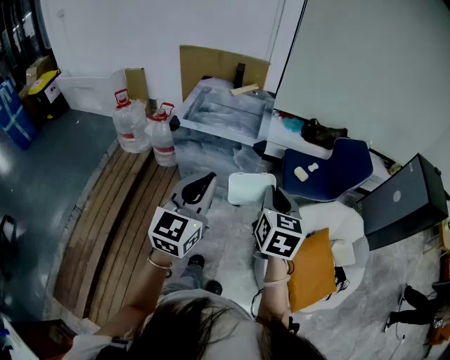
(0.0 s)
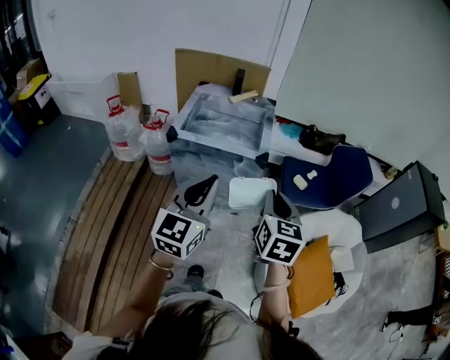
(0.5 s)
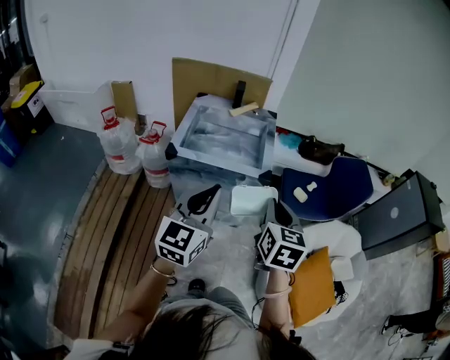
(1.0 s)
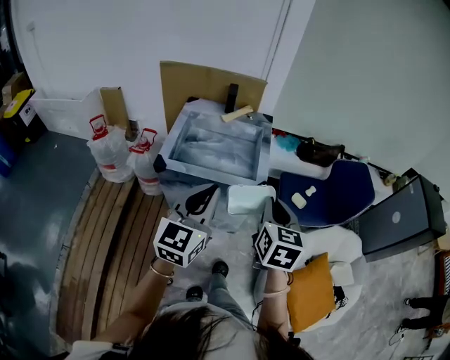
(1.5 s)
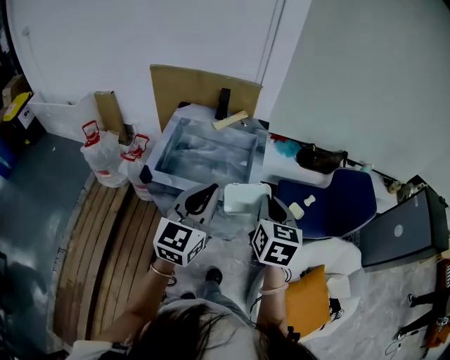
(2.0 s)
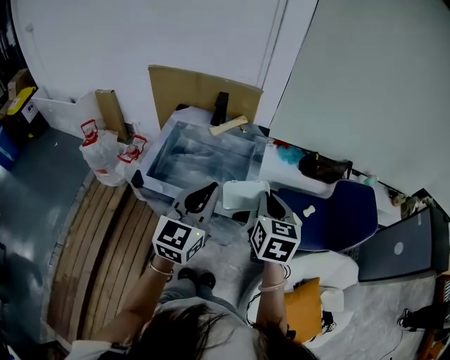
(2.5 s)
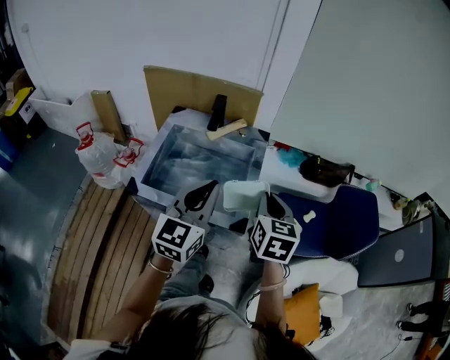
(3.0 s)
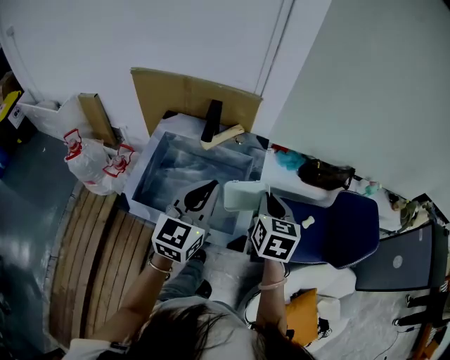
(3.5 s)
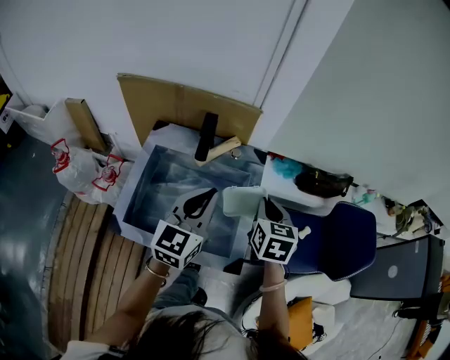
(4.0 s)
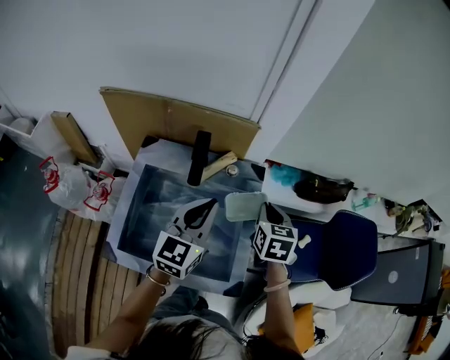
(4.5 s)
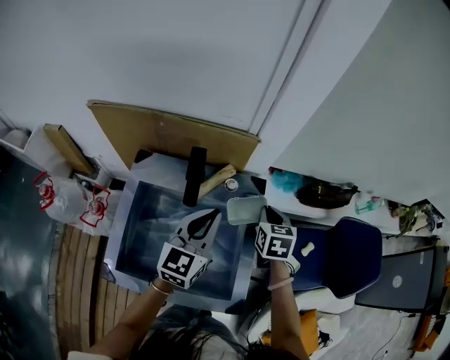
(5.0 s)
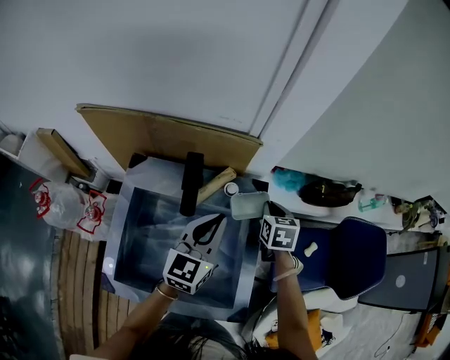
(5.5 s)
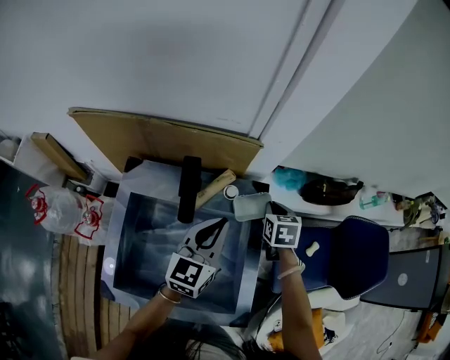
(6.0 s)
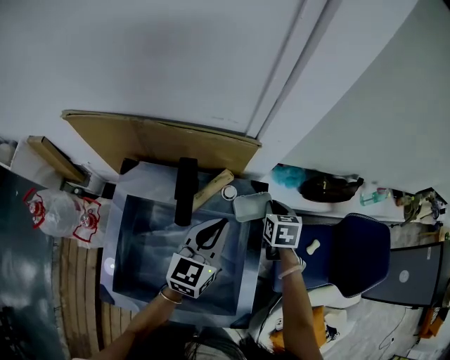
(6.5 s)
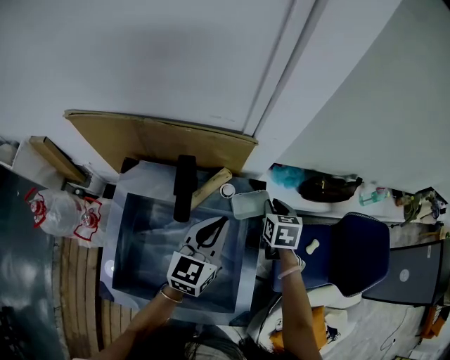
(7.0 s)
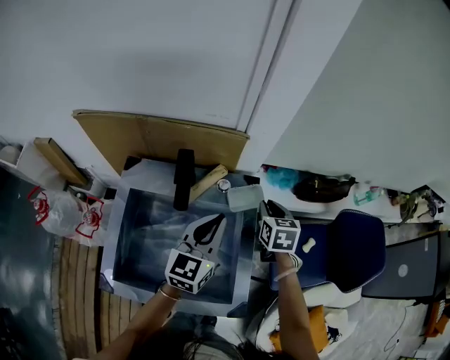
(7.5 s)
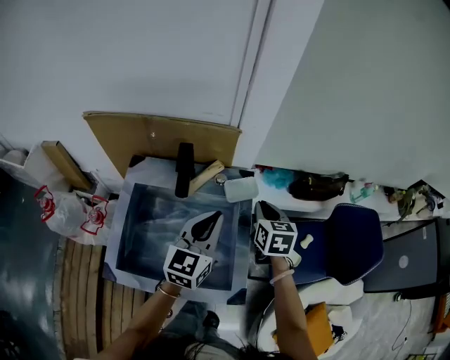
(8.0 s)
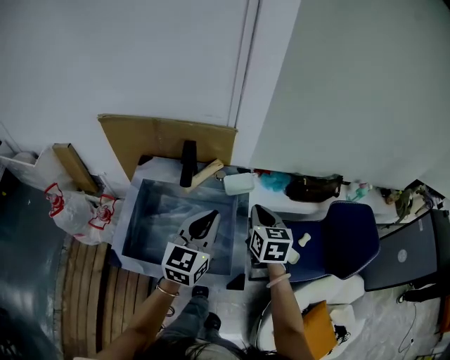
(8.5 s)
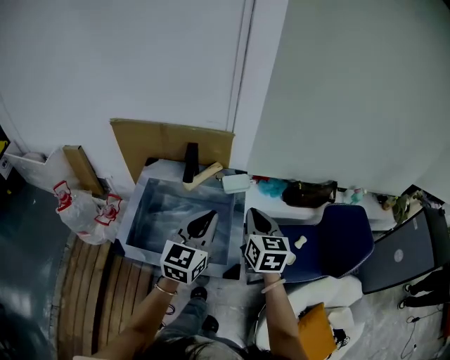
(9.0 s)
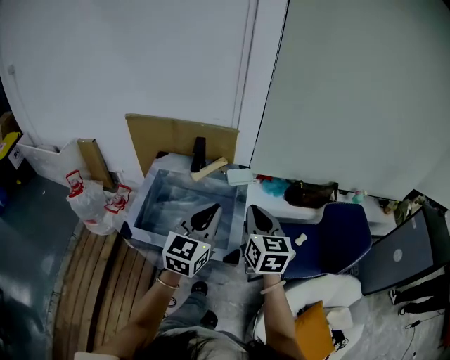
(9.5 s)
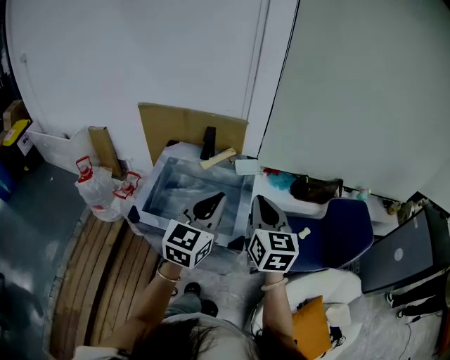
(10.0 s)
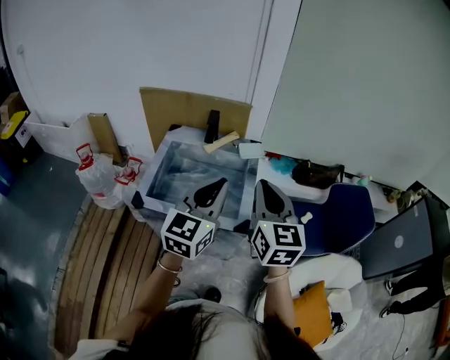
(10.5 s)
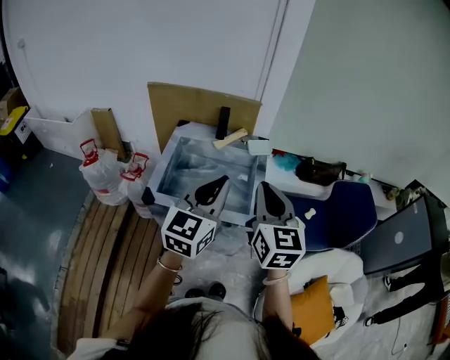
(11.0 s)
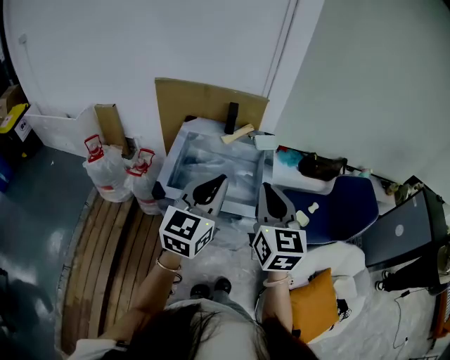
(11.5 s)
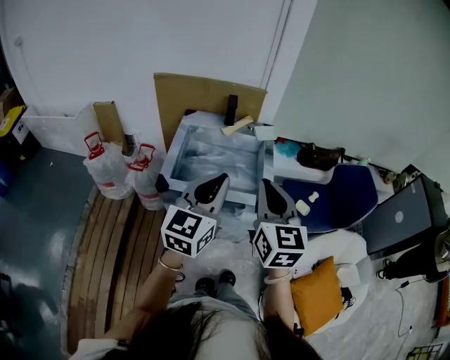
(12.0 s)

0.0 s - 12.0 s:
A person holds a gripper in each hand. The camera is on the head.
0.0 s - 2.0 s: Both grippers move forward, roughly 30 cm.
2.0 s - 4.0 s: Both grippers move forward, roughly 30 cm.
4.0 s - 6.0 s: The two grippers go about 20 cm forward and downward.
6.0 s - 8.0 s: The right gripper shifts roughly 15 cm backward and upward. Meanwhile the left gripper goes approximately 10 cm backward.
8.0 s - 10.0 s: The grippers both shift backward and upward by about 30 cm. The right gripper changes its angle by approximately 30 degrees.
10.0 s - 12.0 s: Both grippers travel together backward and to the left, some 20 cm.

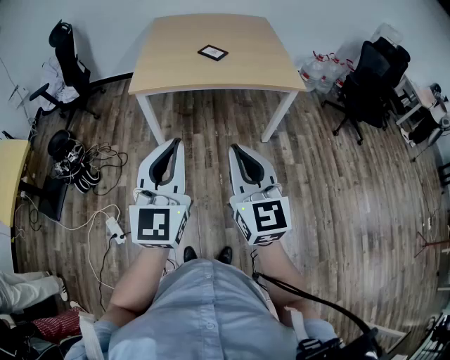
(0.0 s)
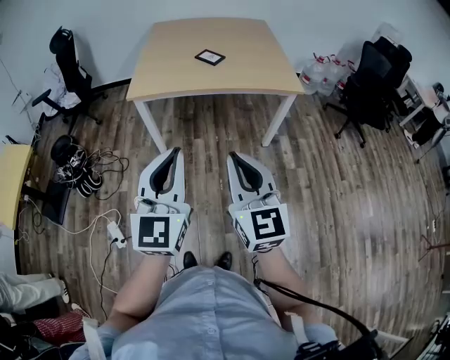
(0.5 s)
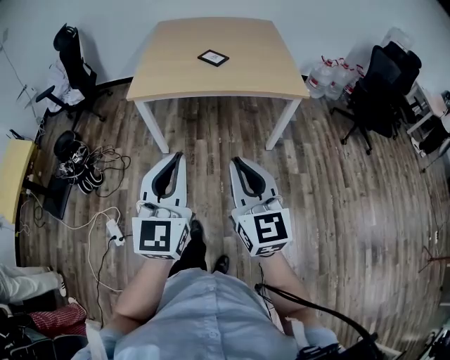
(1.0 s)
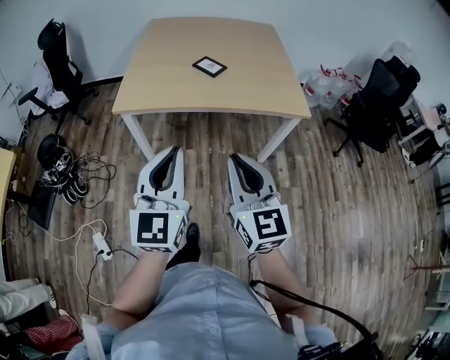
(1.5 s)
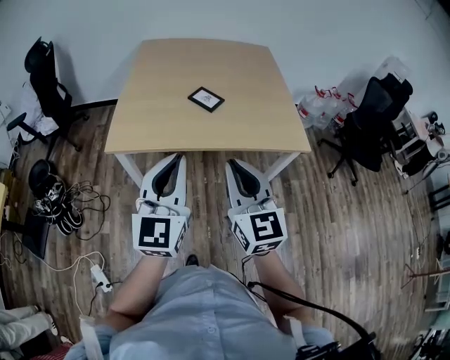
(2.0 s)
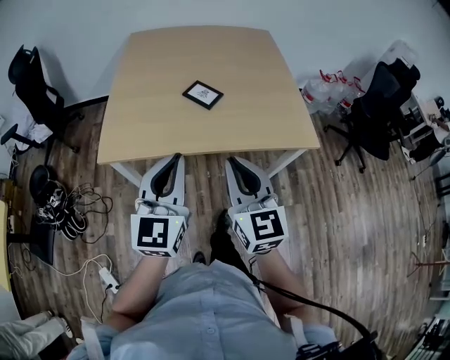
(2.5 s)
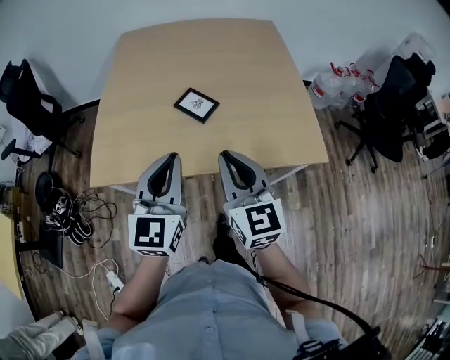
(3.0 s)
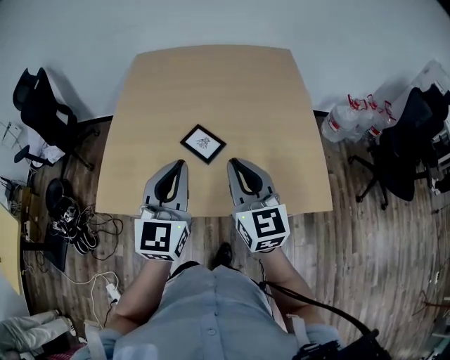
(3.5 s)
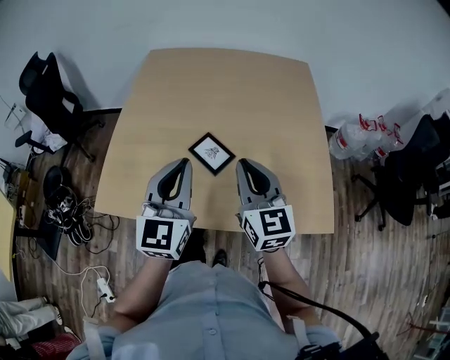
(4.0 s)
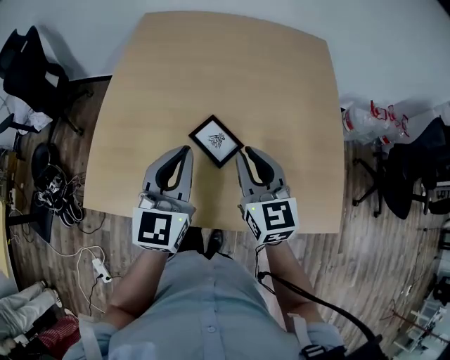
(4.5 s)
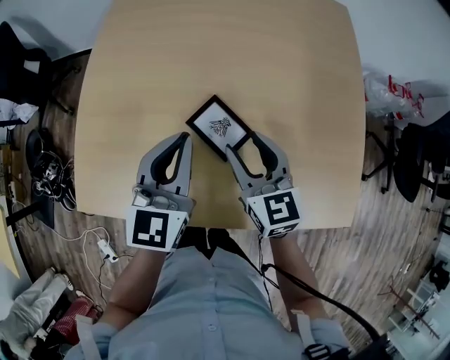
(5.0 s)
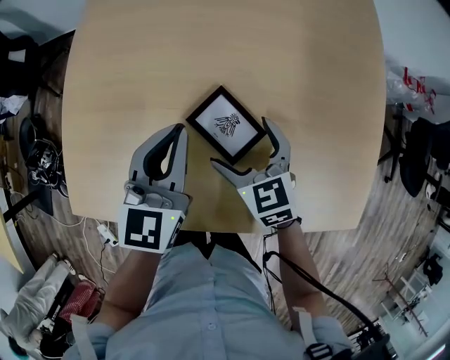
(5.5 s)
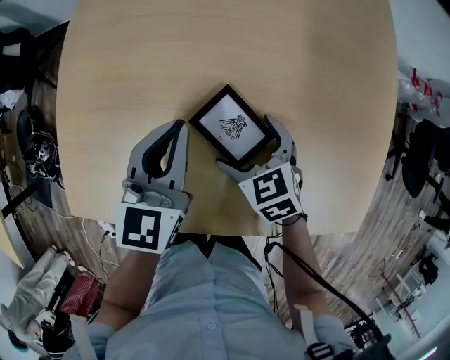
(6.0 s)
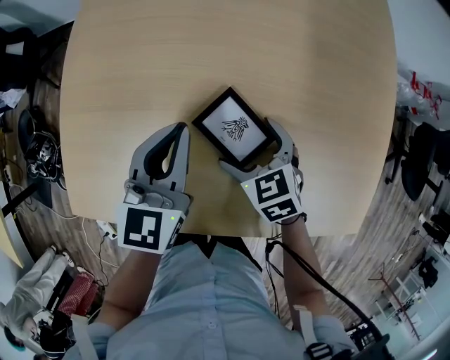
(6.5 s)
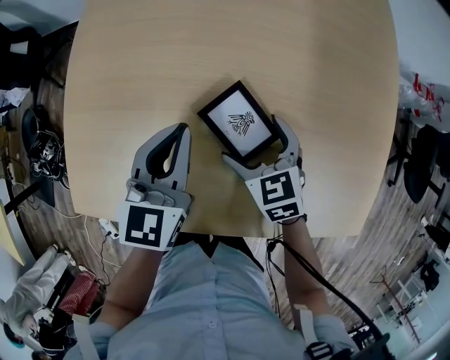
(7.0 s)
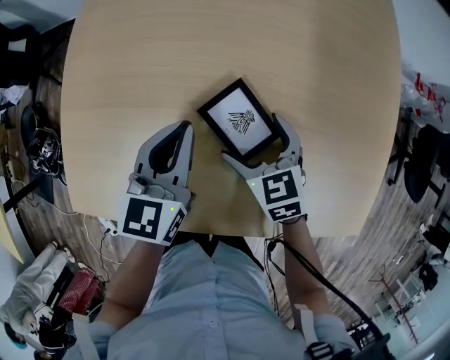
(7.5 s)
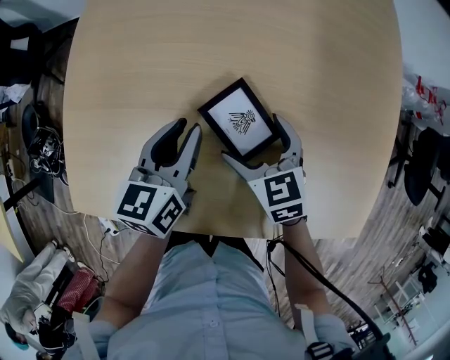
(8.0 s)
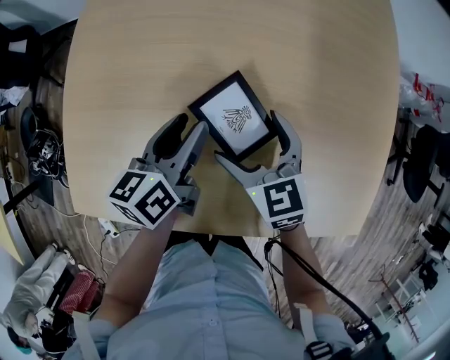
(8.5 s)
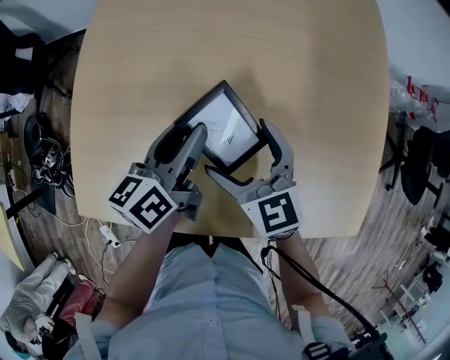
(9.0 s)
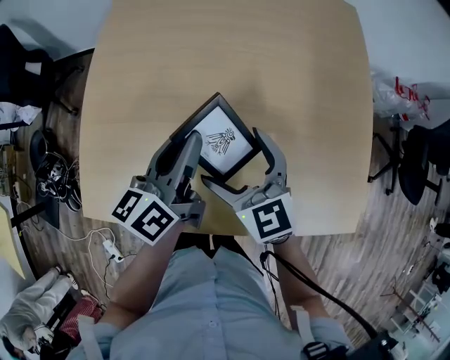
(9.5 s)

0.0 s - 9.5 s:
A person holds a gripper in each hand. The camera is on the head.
0.0 s - 2.0 s: The two grippers go some 25 cm forward.
2.0 s - 4.0 s: The grippers both shift forward by roughly 25 cm.
4.0 s - 5.5 s: The right gripper is displaced downward by about 20 cm, angles its fingers downward, by roughly 30 degrees, and opens up; the left gripper is displaced downward and forward by approximately 15 cm.
5.5 s - 7.5 s: The grippers make only small movements.
7.5 s - 9.5 s: The left gripper travels upward by about 5 cm, turns by roughly 30 degrees, and opens, then closes once more. Meanwhile the right gripper is displaced upward by approximately 10 cm, and changes its angle by about 20 degrees.

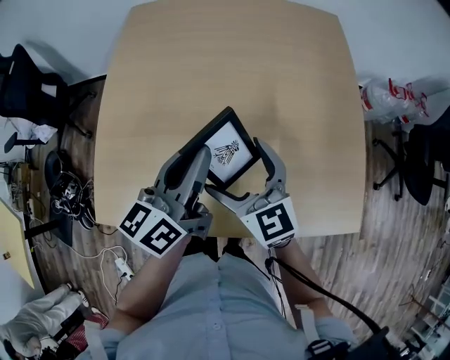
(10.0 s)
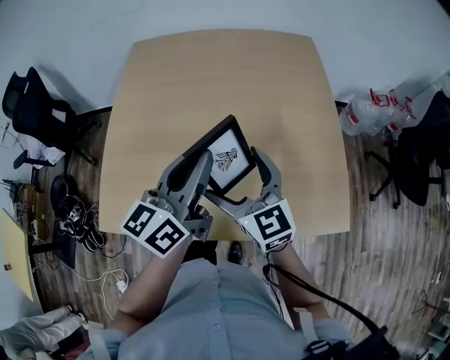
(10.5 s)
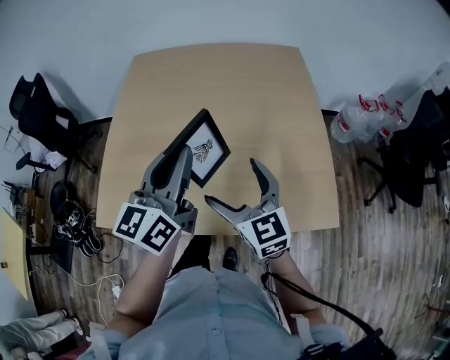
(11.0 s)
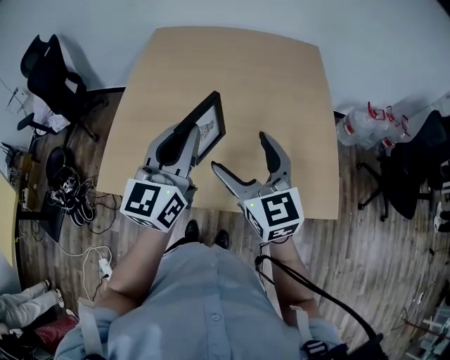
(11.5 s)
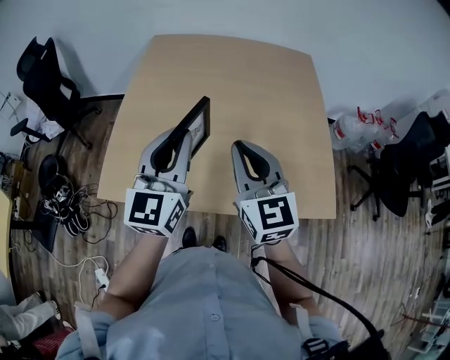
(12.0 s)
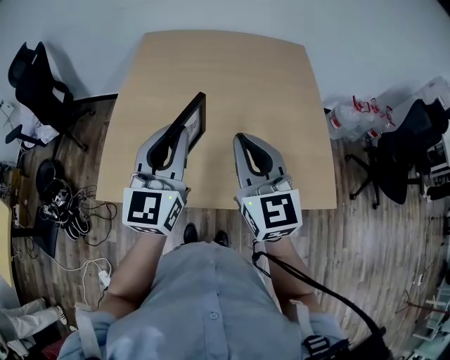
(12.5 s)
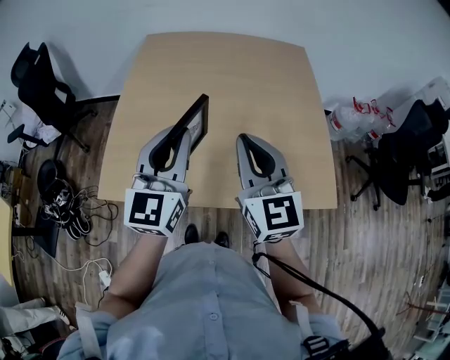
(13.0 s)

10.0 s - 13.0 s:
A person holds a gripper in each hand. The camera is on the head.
10.0 s - 11.5 s: The left gripper is displaced upward and backward by some 10 cm, and rotates approximately 30 degrees; the right gripper heads upward, backward and to the right, covering some 10 cm.
11.5 s - 13.0 s: The right gripper closes its fingers.

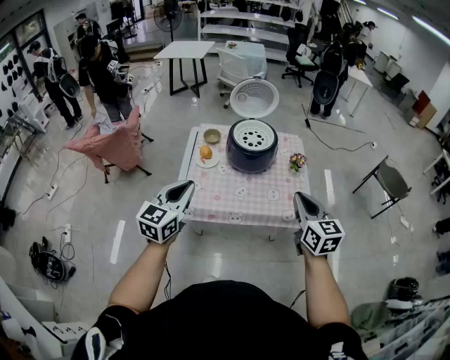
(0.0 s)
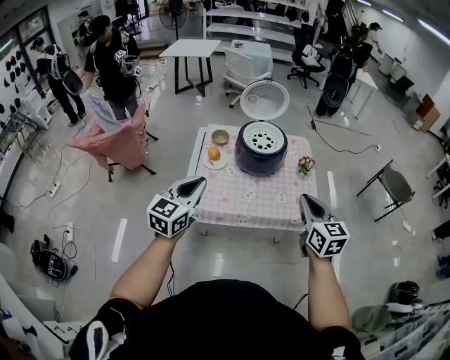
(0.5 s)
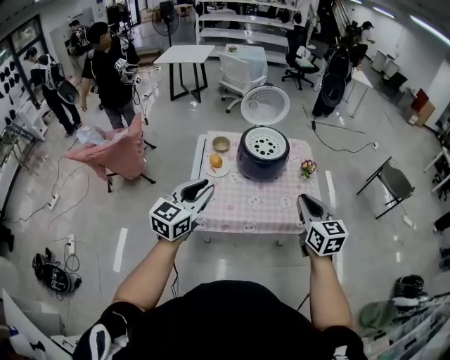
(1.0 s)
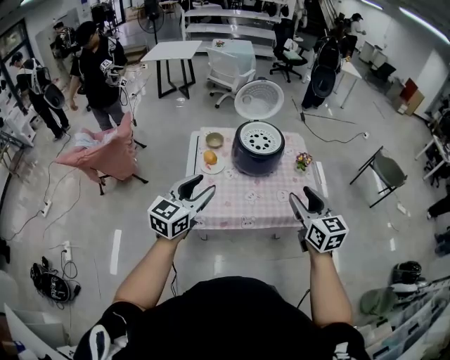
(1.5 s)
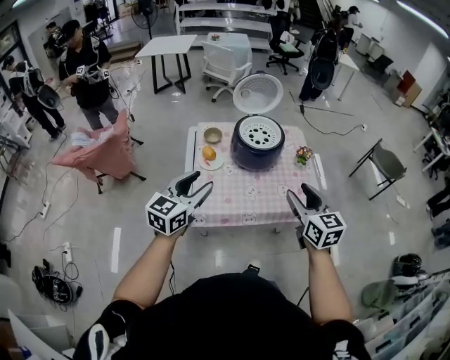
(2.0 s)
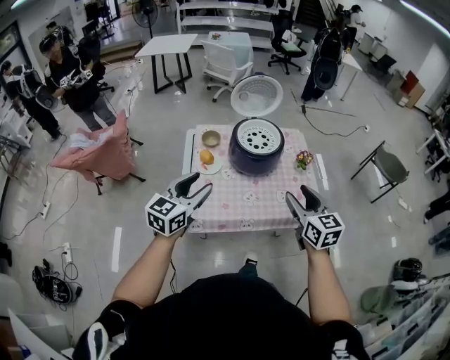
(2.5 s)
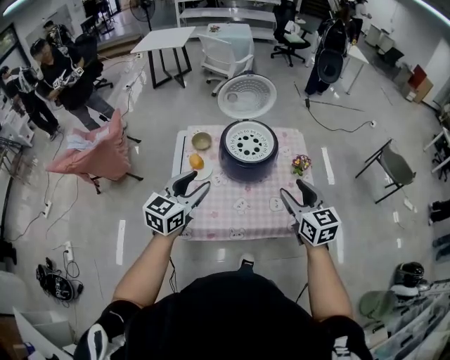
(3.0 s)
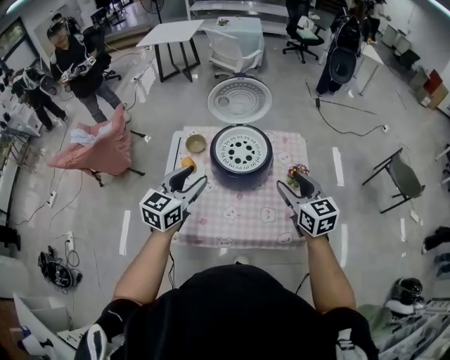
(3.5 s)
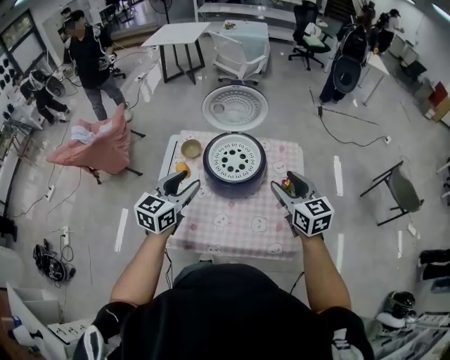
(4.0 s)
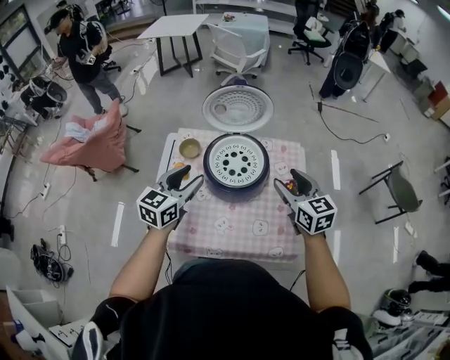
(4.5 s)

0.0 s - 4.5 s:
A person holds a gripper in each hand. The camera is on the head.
0.0 s - 2.0 s: The right gripper heads to the left, covering approximately 10 cm, and opens; the left gripper moves forward and to the left, approximately 10 cm, and opens.
2.0 s - 4.5 s: The left gripper is displaced forward and to the right by approximately 30 cm, while the right gripper is displaced forward by roughly 30 cm.
